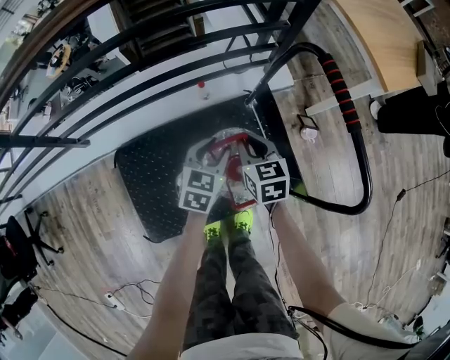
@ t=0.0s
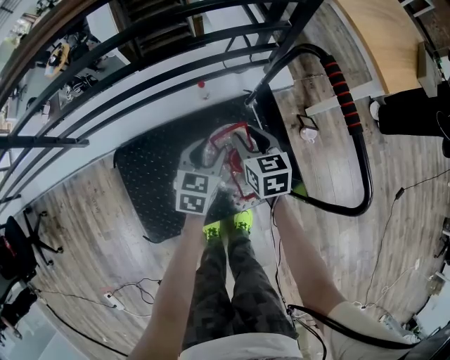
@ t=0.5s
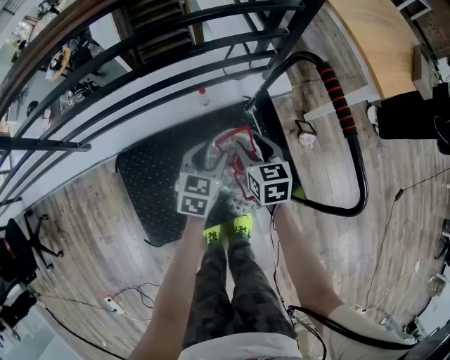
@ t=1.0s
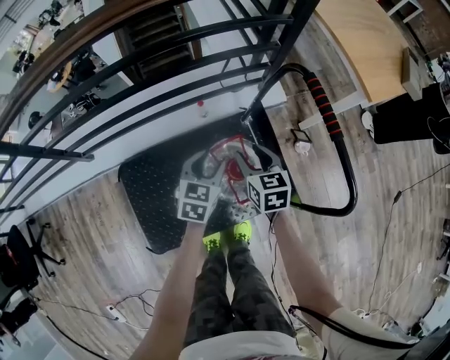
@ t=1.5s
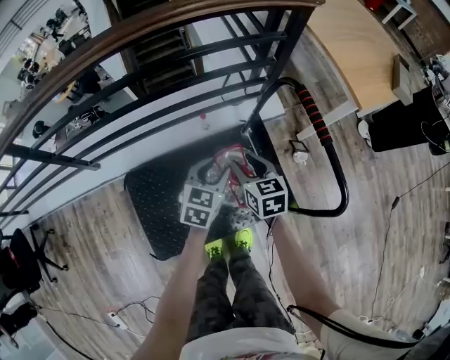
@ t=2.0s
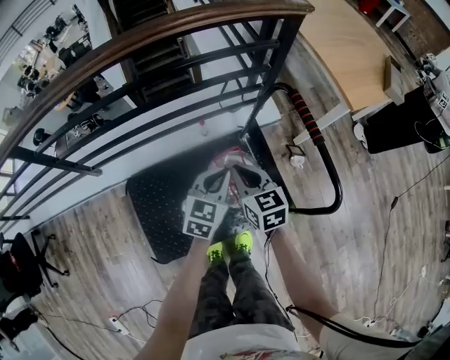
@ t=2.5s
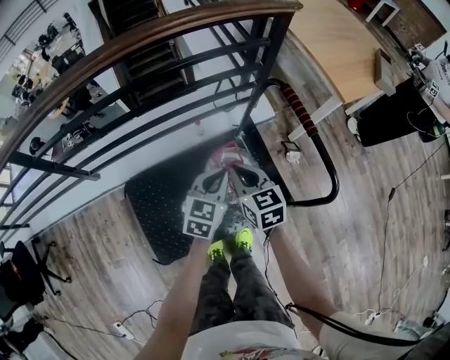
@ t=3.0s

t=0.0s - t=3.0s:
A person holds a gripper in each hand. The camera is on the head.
t=0.0s - t=1.5s: The right gripper opens, while the left gripper moves approximately 5 cm.
t=1.5s - t=3.0s: The two grippers go some 15 cm upward and backward. The left gripper closes up. Meanwhile the right gripper closes its fingers.

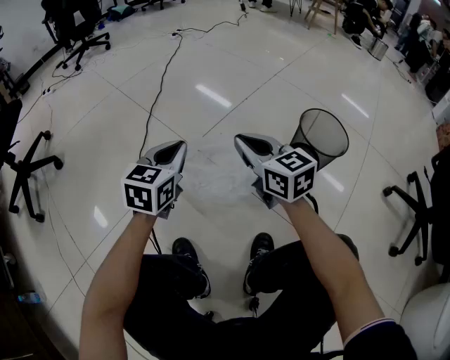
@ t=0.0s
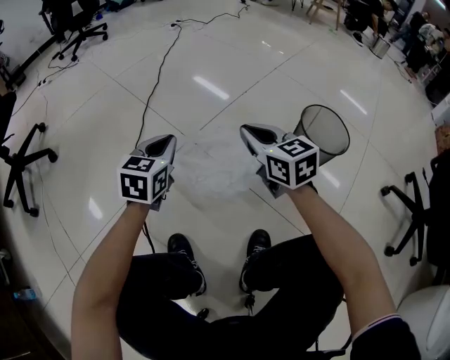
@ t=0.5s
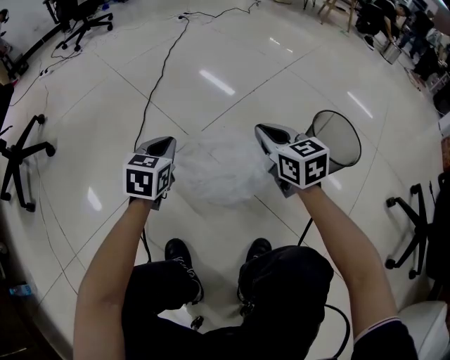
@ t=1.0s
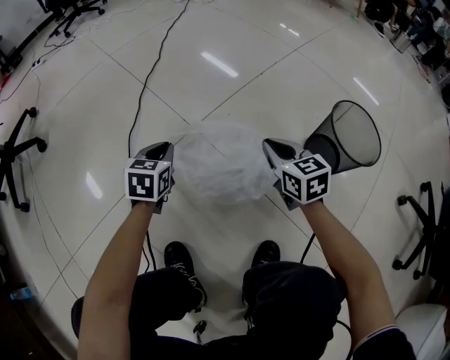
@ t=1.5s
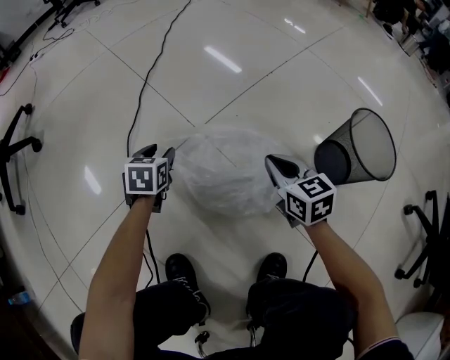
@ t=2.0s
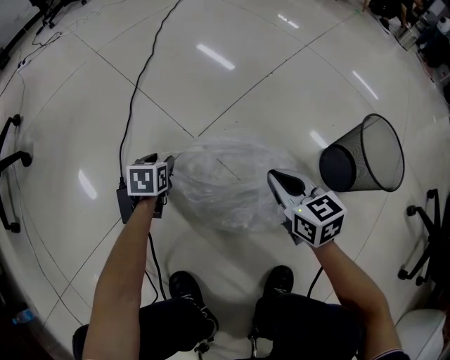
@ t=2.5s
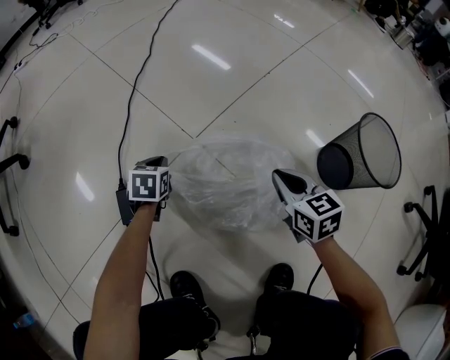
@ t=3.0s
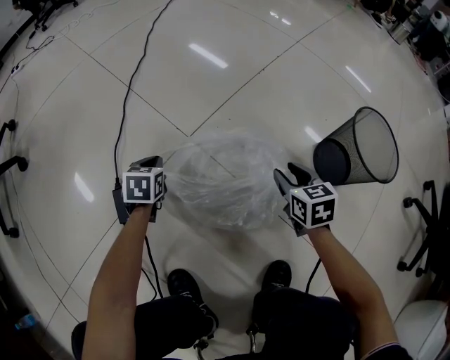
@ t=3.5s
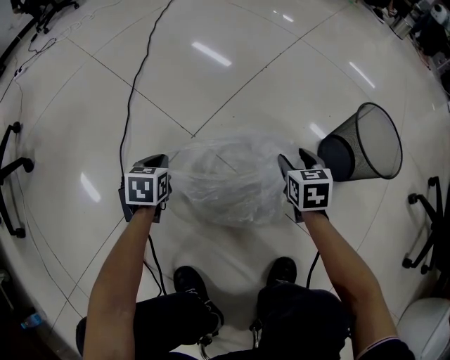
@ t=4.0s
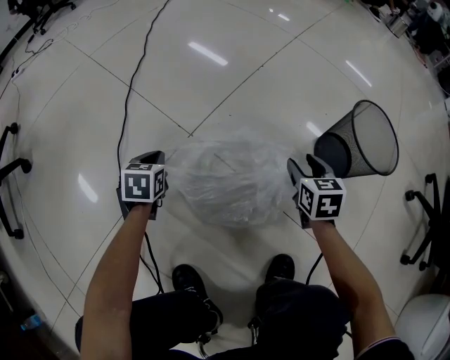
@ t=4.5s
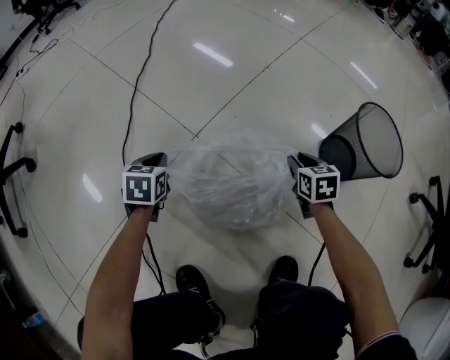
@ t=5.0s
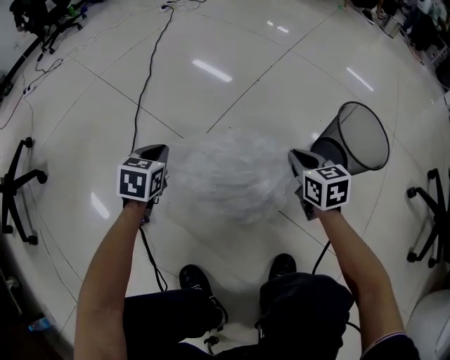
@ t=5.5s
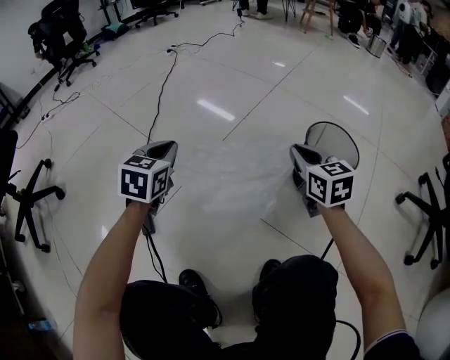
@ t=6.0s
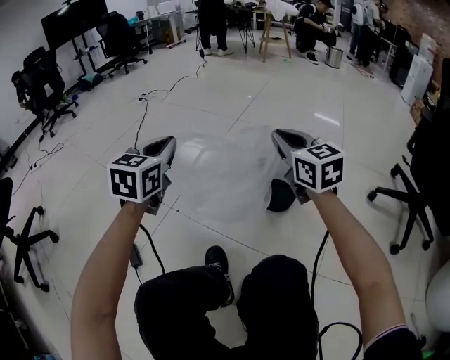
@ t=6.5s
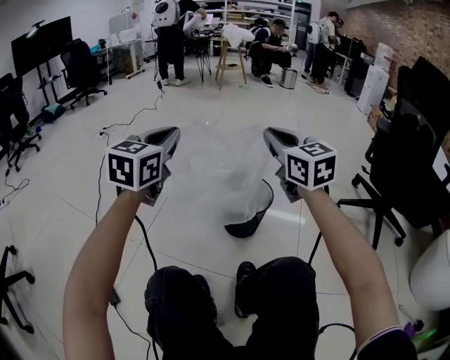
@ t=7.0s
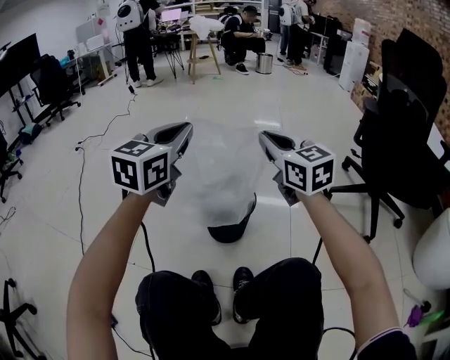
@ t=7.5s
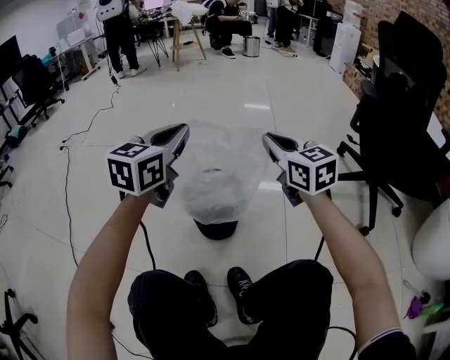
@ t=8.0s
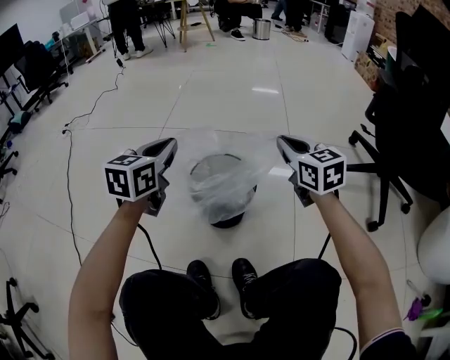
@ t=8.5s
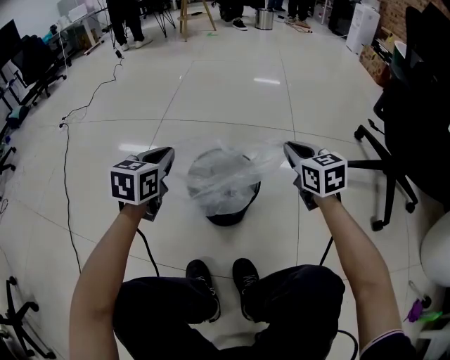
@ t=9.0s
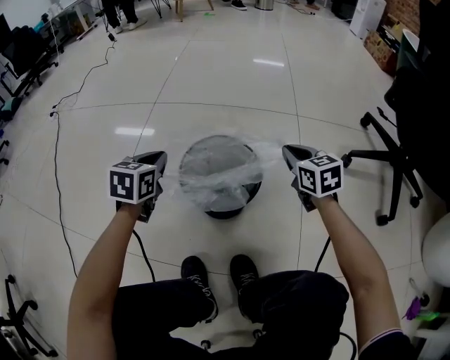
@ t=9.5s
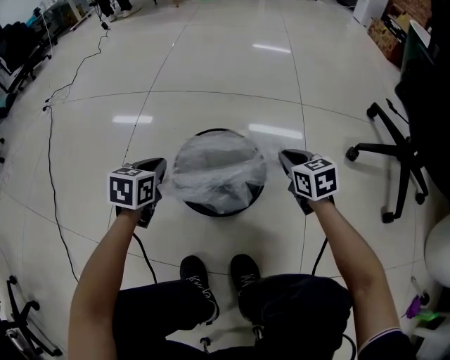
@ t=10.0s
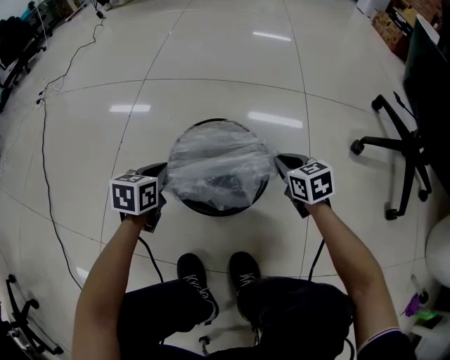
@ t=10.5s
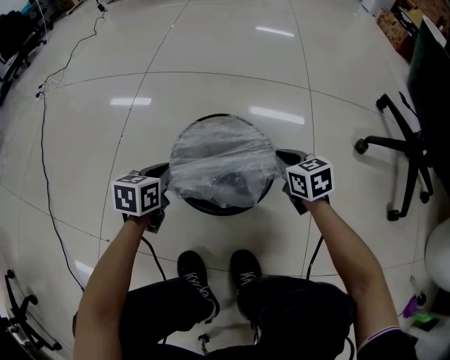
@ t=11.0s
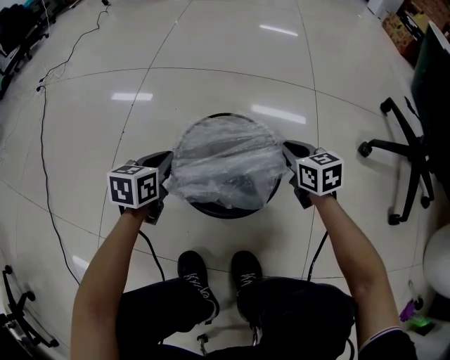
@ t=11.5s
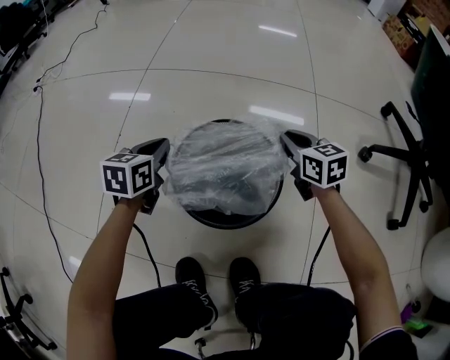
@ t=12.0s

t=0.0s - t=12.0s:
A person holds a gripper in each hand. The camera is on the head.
t=0.0s - t=2.0s: The left gripper goes approximately 30 cm downward and forward, rotates about 30 degrees, and opens its fingers. Meanwhile the right gripper heads downward, covering some 20 cm.
t=2.0s - t=4.0s: The right gripper moves to the right and downward, approximately 10 cm, swivels about 30 degrees, and opens. Meanwhile the left gripper closes its fingers.
t=4.0s - t=6.0s: Both grippers move upward, about 25 cm. The left gripper changes its angle by approximately 30 degrees; the right gripper changes its angle by roughly 30 degrees, and closes its fingers.
t=6.0s - t=8.0s: The right gripper shifts by approximately 35 cm, and changes its angle by some 20 degrees. The left gripper moves approximately 50 cm, and turns by some 50 degrees.
t=8.0s - t=10.0s: The grippers both shift downward by roughly 35 cm. The left gripper tips its fingers downward by roughly 30 degrees, while the right gripper swivels about 30 degrees.
t=10.0s - t=12.0s: Both grippers move forward, some 5 cm.

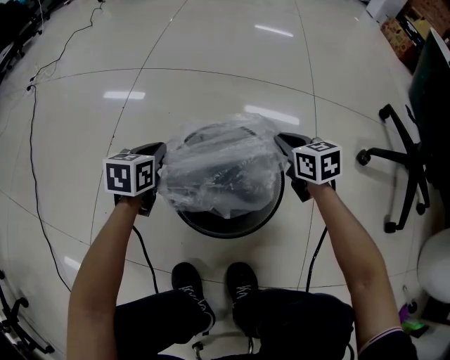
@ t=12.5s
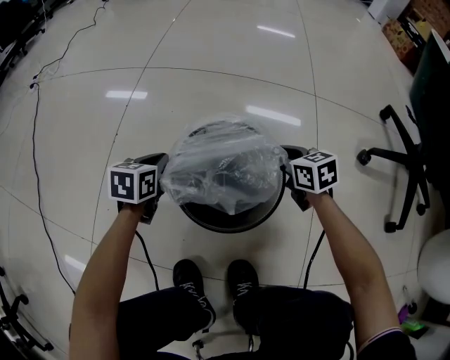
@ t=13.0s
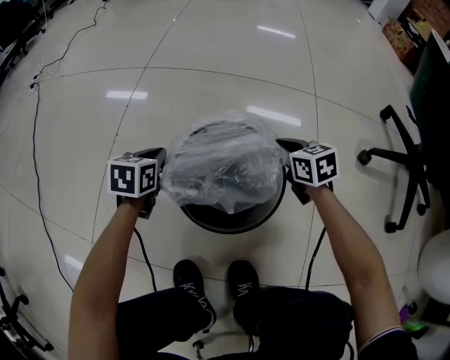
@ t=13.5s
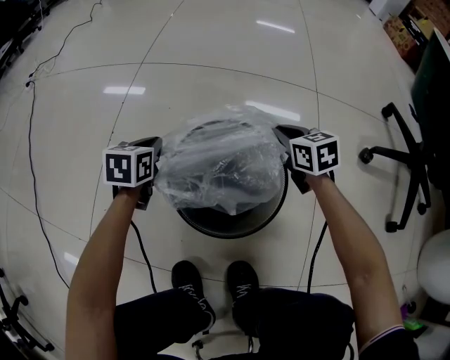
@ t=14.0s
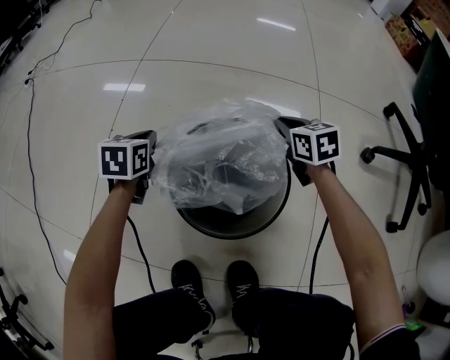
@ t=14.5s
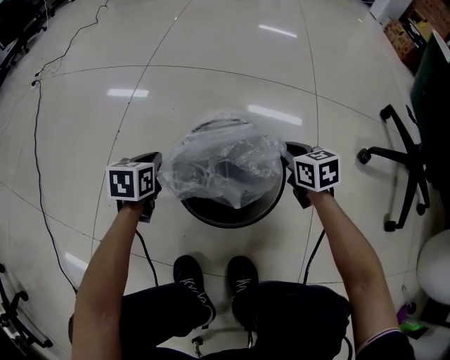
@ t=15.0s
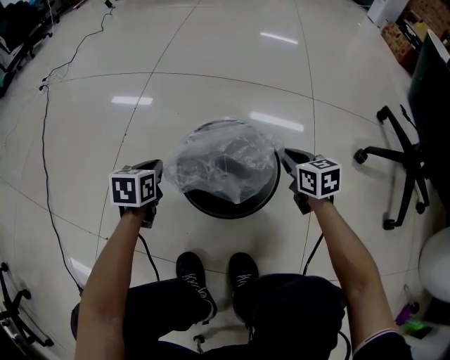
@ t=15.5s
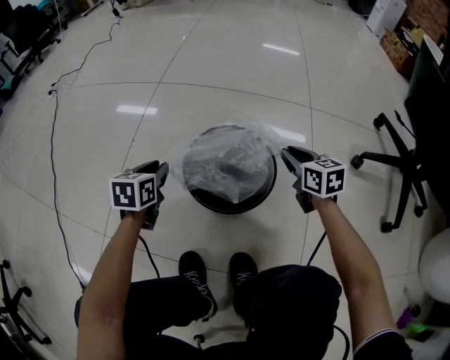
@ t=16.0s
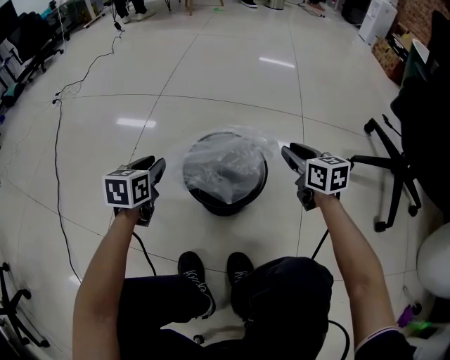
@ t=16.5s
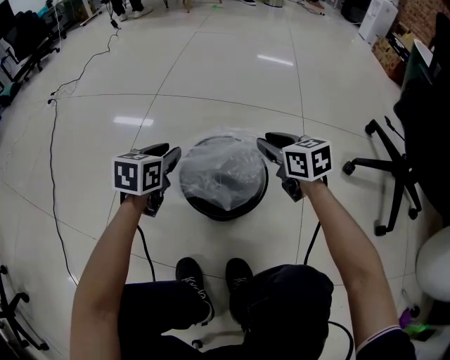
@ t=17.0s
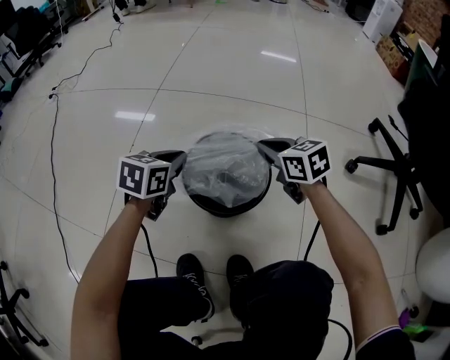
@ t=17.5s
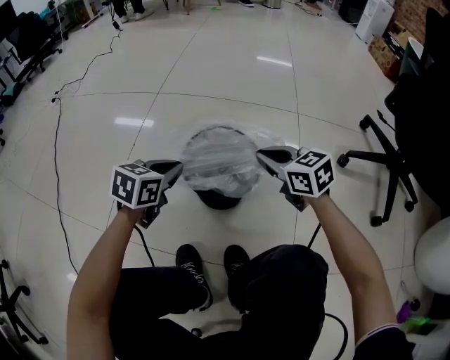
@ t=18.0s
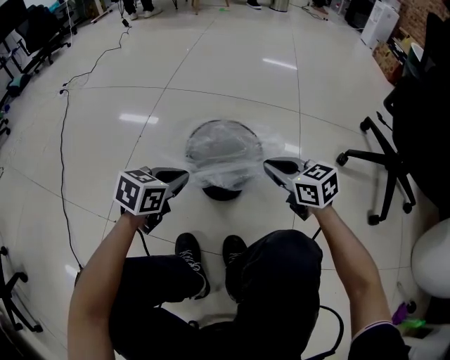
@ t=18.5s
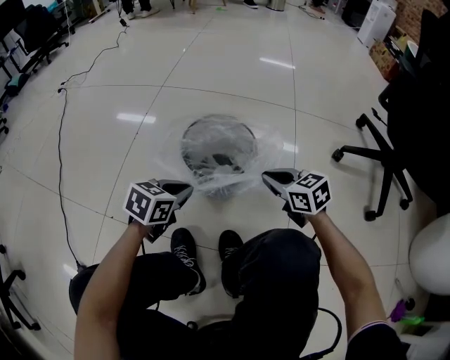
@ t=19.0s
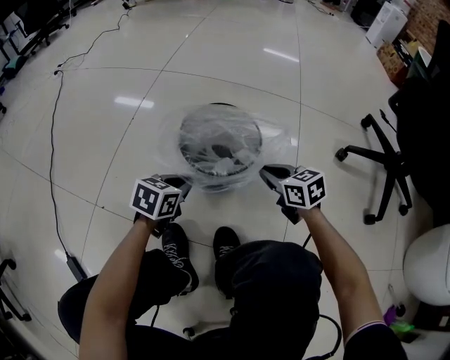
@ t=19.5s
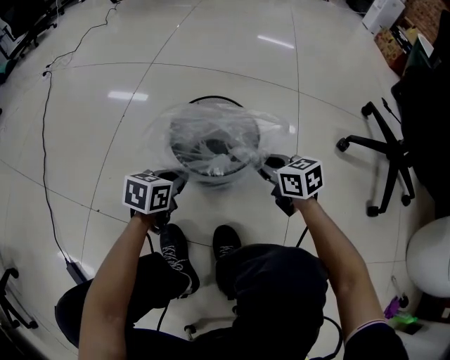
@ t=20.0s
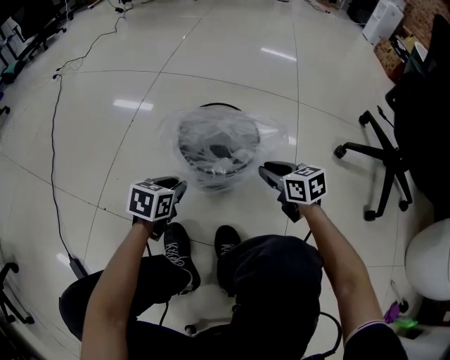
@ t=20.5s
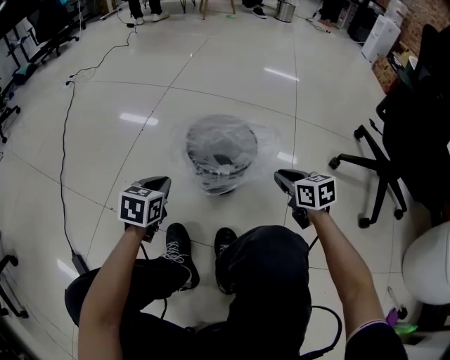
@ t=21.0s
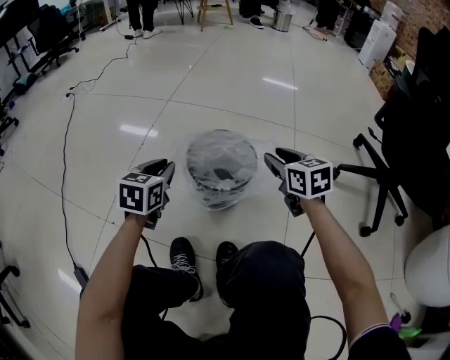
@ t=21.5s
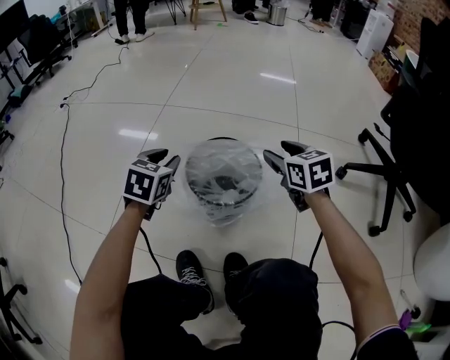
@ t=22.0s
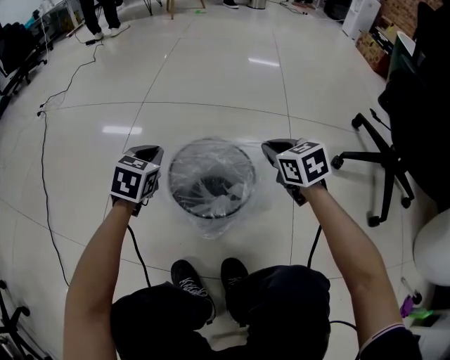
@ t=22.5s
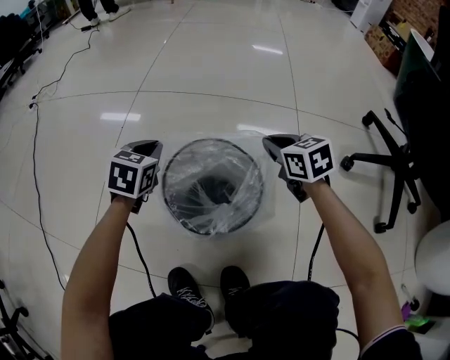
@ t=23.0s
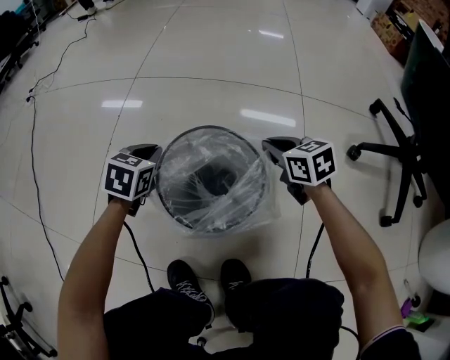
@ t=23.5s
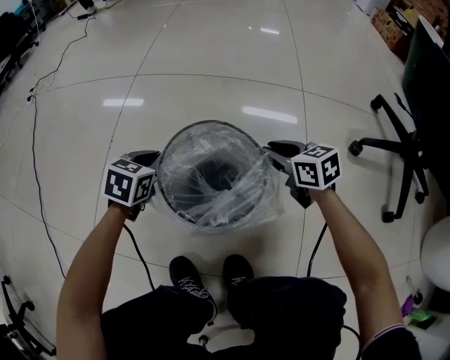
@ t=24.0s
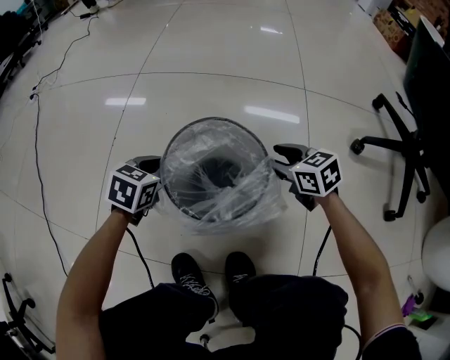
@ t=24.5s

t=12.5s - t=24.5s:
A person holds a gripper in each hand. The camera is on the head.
t=12.5s - t=14.5s: There are only small adjustments of the grippers.
t=14.5s - t=16.5s: Both grippers move upward and backward, approximately 15 cm. The left gripper opens up. The right gripper opens.
t=16.5s - t=18.5s: The left gripper is displaced backward and to the right by some 15 cm, swivels approximately 20 degrees, and closes its fingers. The right gripper heads backward and to the left, covering approximately 15 cm, swivels approximately 20 degrees, and closes up.
t=18.5s - t=20.5s: Both grippers move downward, some 10 cm. The right gripper opens its fingers.
t=20.5s - t=22.5s: Both grippers move forward and upward, some 20 cm. The right gripper closes, while the left gripper rotates approximately 30 degrees.
t=22.5s - t=24.5s: The grippers both shift downward by about 10 cm. The right gripper opens its fingers.
